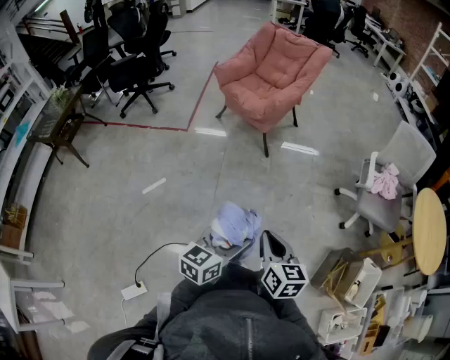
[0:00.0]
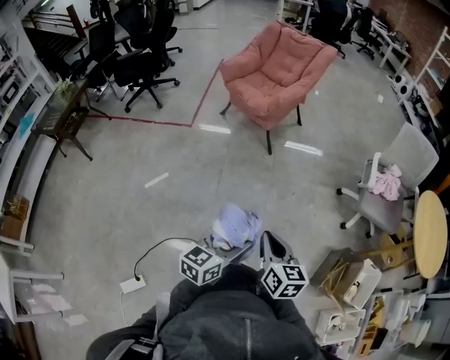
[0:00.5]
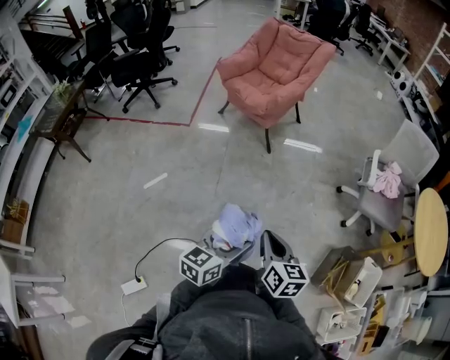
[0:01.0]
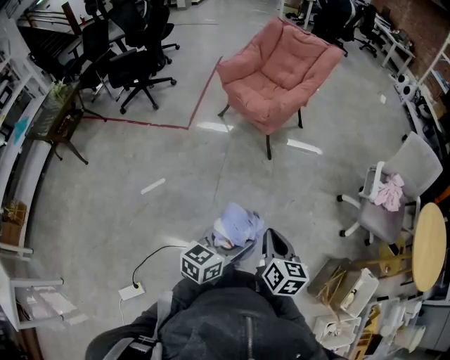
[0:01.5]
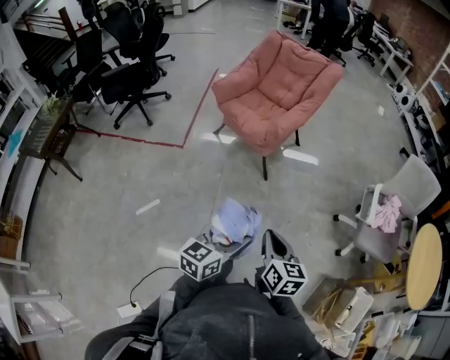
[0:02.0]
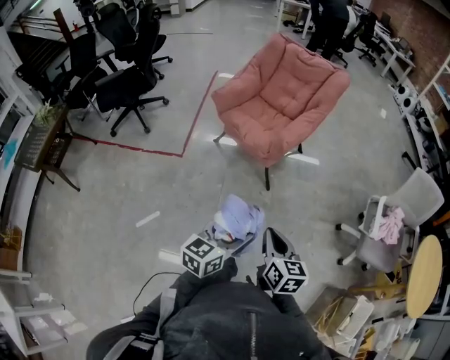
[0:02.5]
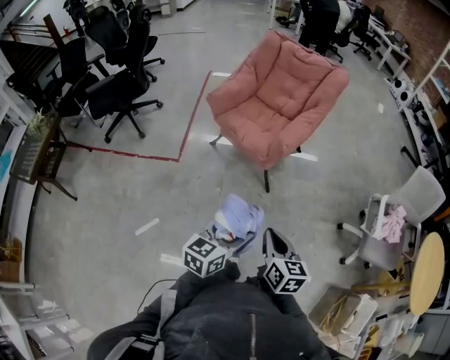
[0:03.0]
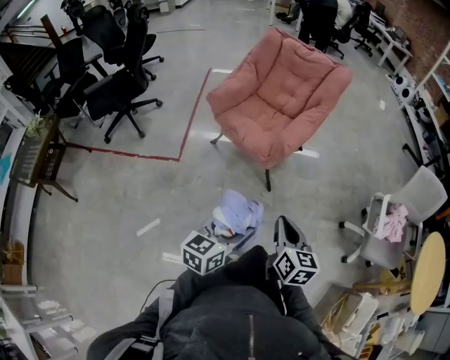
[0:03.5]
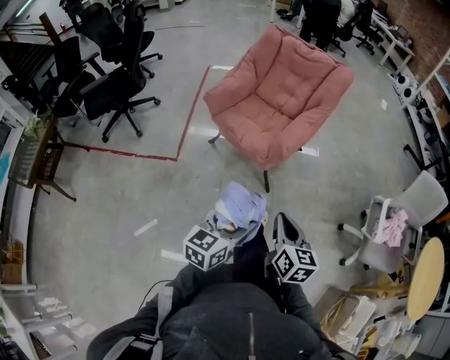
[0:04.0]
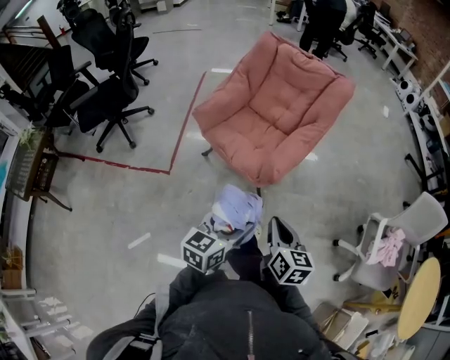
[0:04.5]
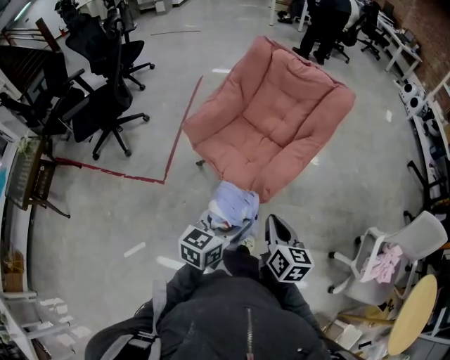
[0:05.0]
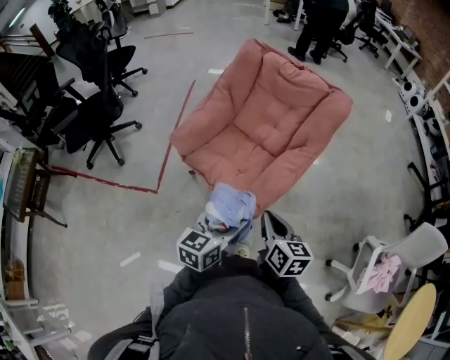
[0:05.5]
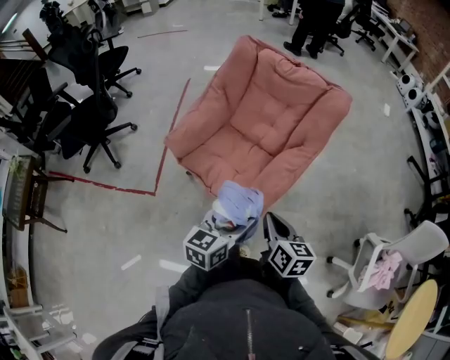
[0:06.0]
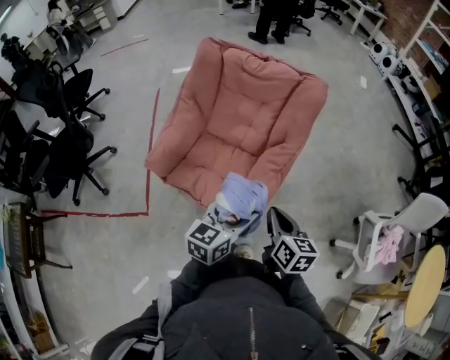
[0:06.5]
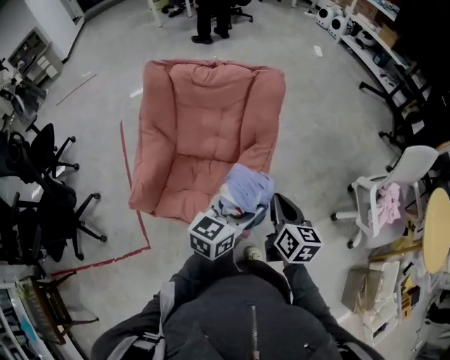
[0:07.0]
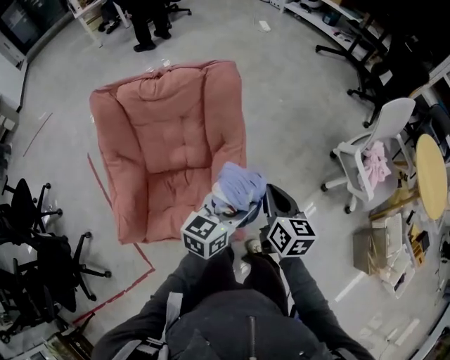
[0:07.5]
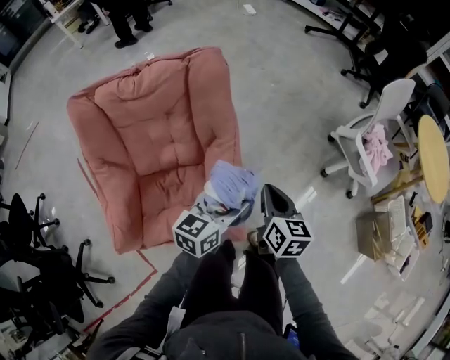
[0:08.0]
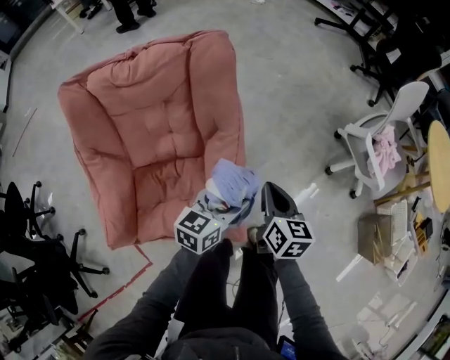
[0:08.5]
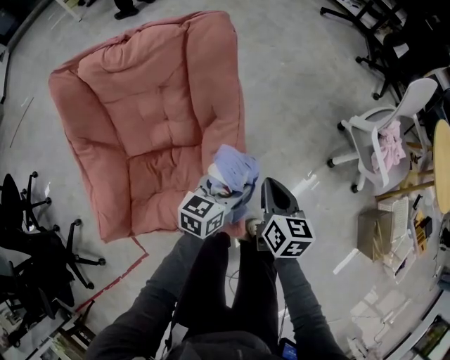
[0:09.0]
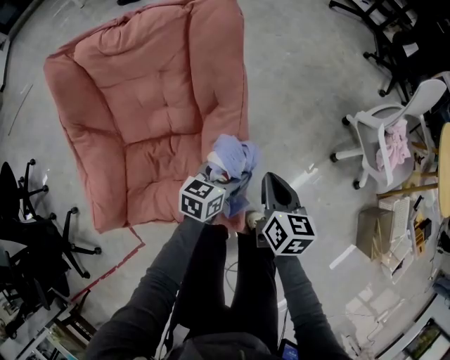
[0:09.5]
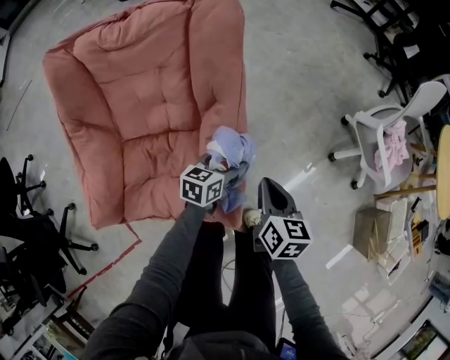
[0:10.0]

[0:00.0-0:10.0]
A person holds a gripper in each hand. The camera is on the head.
0:00.0 to 0:02.0: The two grippers go roughly 20 cm forward.
0:02.0 to 0:04.0: Both grippers move forward, about 25 cm.
0:04.0 to 0:06.0: Both grippers travel together forward, approximately 35 cm.
0:06.0 to 0:08.0: The left gripper moves roughly 20 cm, and swivels about 50 degrees, while the right gripper ends up approximately 20 cm from where it was, and turns by some 50 degrees.
0:08.0 to 0:10.0: The right gripper moves downward, some 10 cm; the left gripper is displaced downward by some 20 cm.

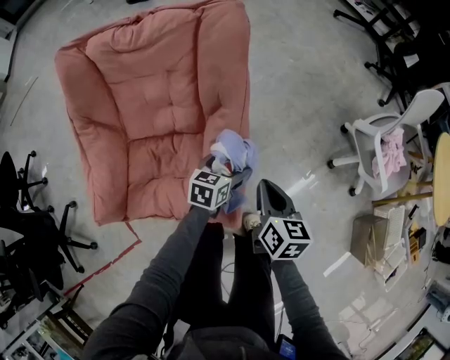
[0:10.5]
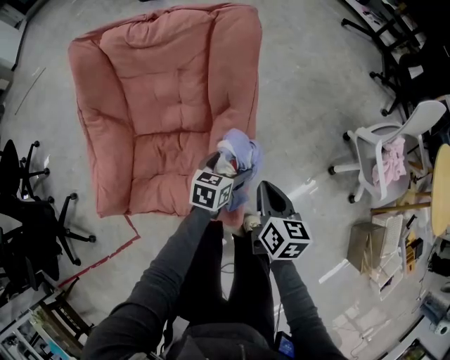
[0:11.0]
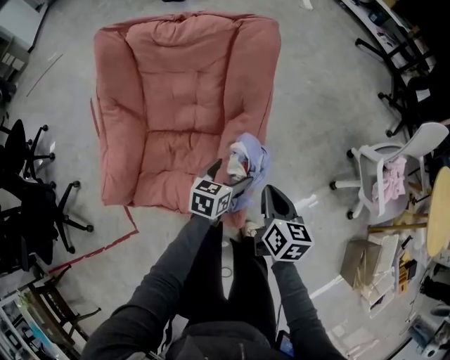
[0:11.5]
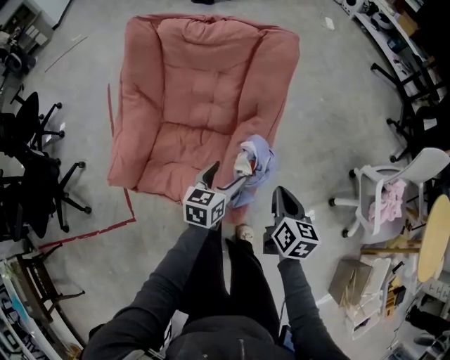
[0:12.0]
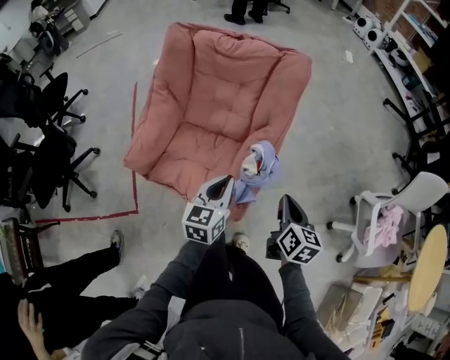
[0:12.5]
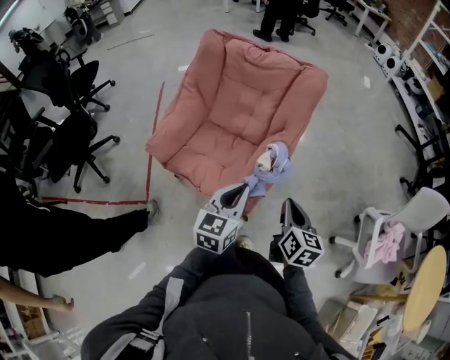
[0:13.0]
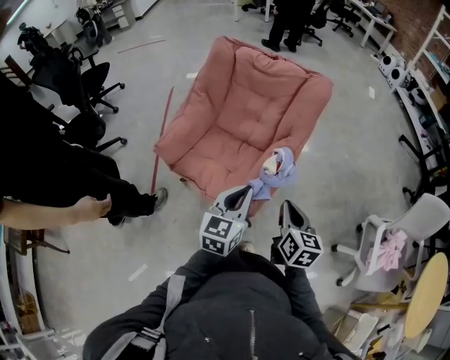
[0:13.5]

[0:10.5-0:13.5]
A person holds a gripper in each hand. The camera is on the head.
0:10.5 to 0:12.0: The left gripper heads upward, to the left and backward, covering about 15 cm, and changes its angle by about 20 degrees.
0:12.0 to 0:13.5: The left gripper is displaced backward and upward by some 20 cm, turns by some 30 degrees, and closes its fingers, while the right gripper travels backward and upward by some 10 cm, and rotates roughly 20 degrees.

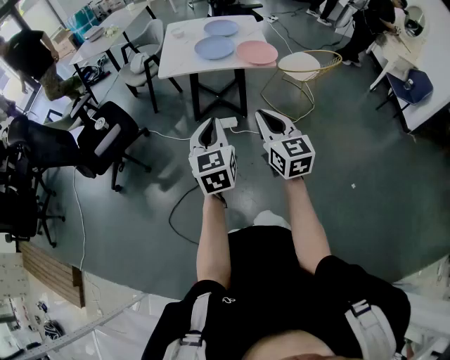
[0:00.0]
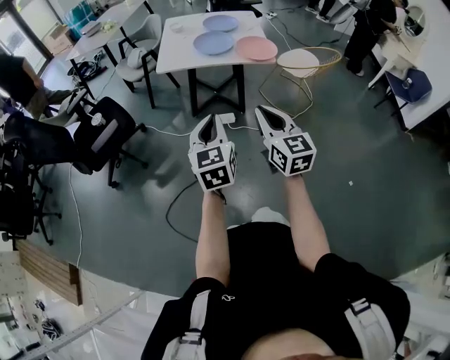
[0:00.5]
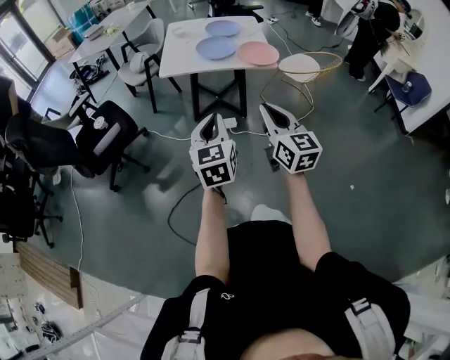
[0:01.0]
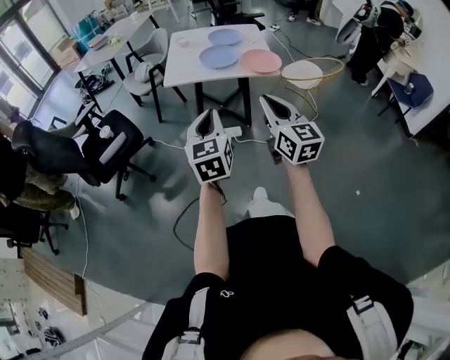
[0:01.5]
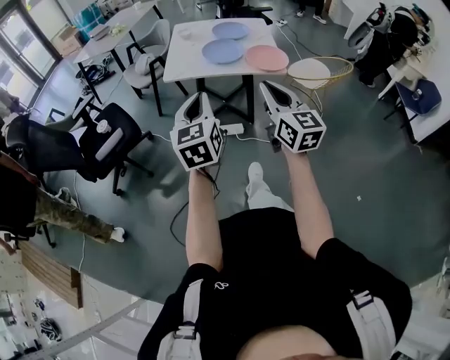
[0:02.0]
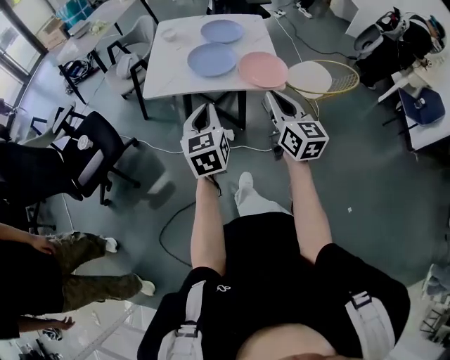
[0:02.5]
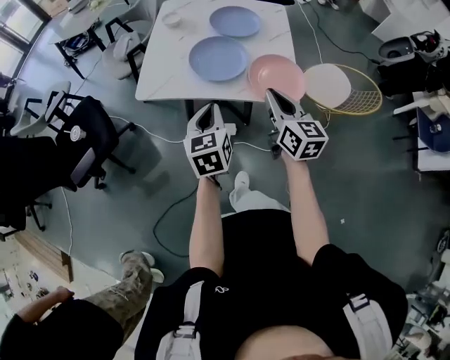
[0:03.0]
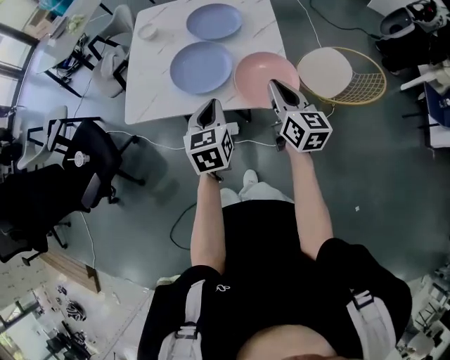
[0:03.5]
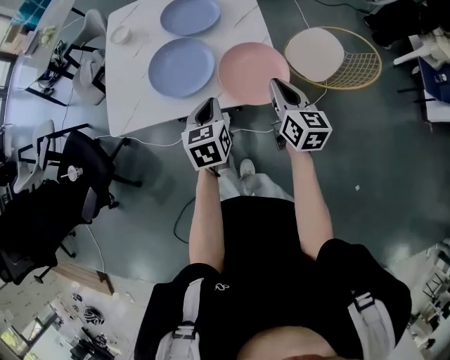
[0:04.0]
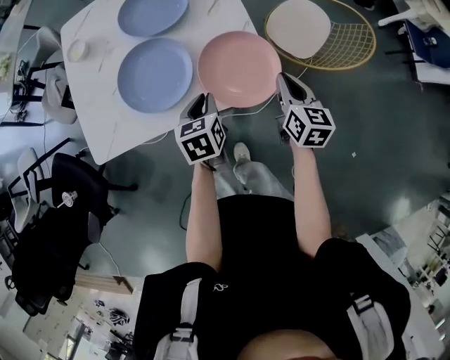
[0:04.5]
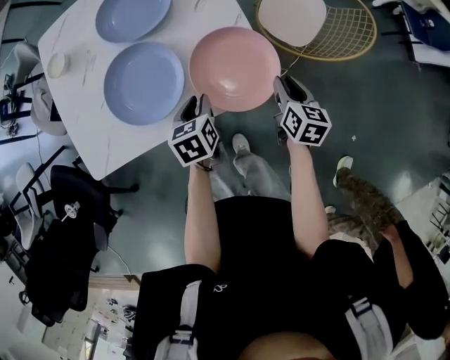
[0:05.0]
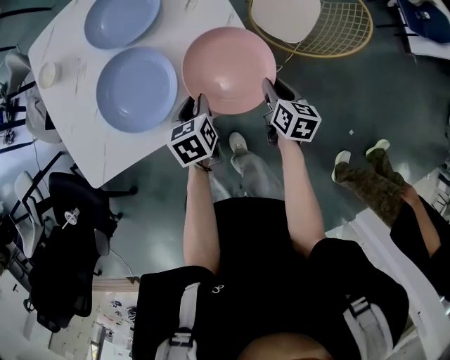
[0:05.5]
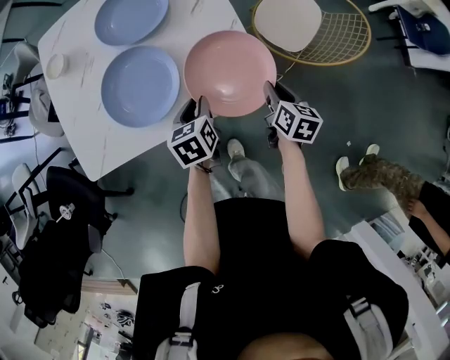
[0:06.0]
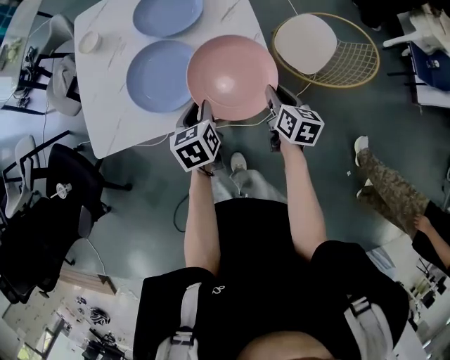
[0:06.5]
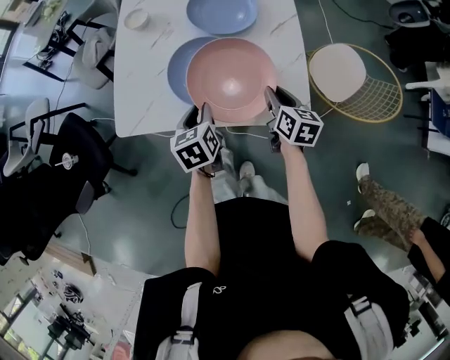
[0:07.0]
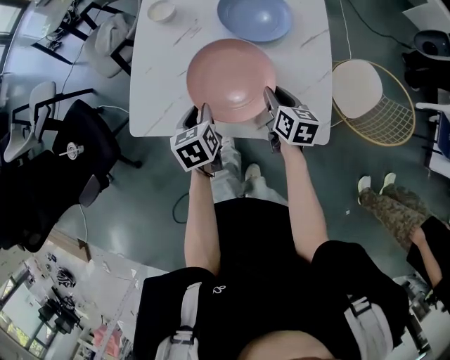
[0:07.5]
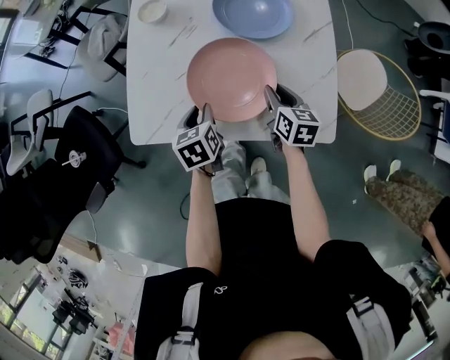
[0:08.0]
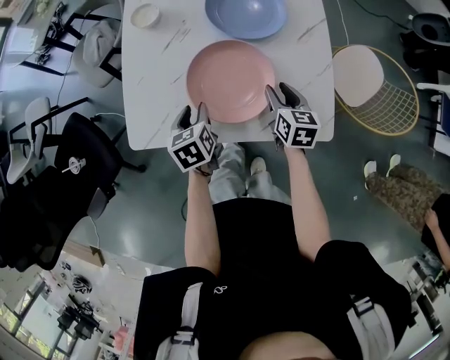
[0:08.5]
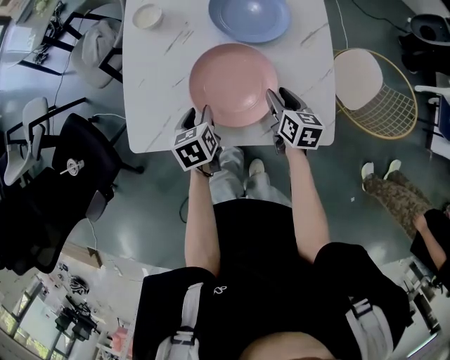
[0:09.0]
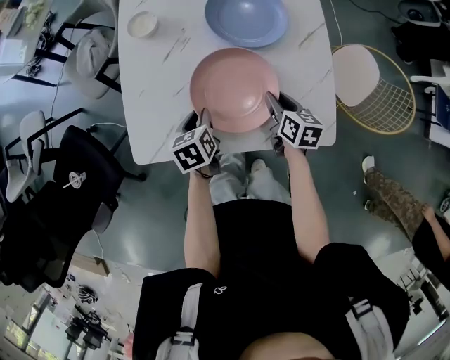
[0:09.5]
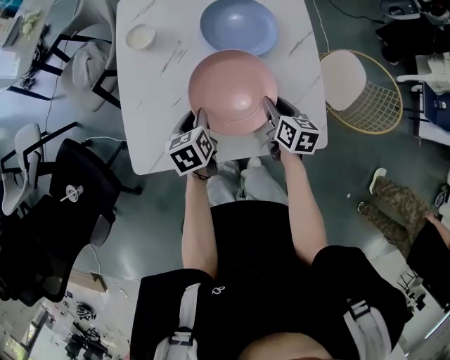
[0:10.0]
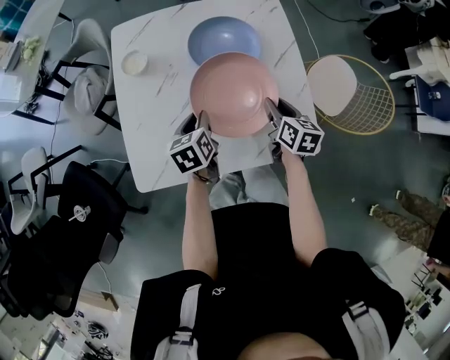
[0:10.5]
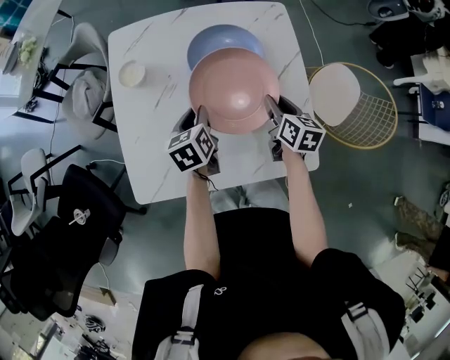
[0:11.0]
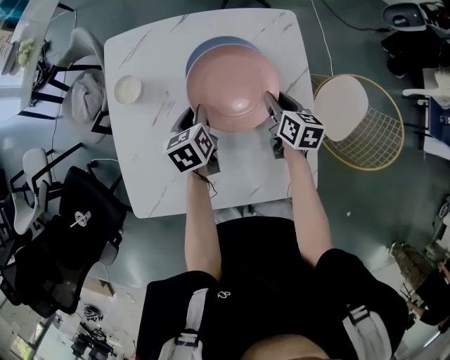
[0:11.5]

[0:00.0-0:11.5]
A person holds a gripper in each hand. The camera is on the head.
0:00.0 to 0:02.0: The grippers both shift forward by roughly 10 cm.
0:02.0 to 0:04.0: The pair of grippers is taken forward and to the right, roughly 50 cm. Both grippers move downward, about 20 cm. The left gripper changes its angle by approximately 30 degrees; the right gripper swivels approximately 30 degrees.
0:04.0 to 0:06.0: The right gripper travels downward and to the right by about 20 cm, and swivels approximately 30 degrees. The left gripper shifts roughly 15 cm downward and forward, and opens up.
0:06.0 to 0:07.5: The left gripper changes place by about 25 cm, and changes its angle by some 20 degrees. The right gripper moves some 25 cm, and rotates about 30 degrees.
0:07.5 to 0:09.5: The left gripper moves some 5 cm.
0:09.5 to 0:11.5: Both grippers move forward, some 20 cm.

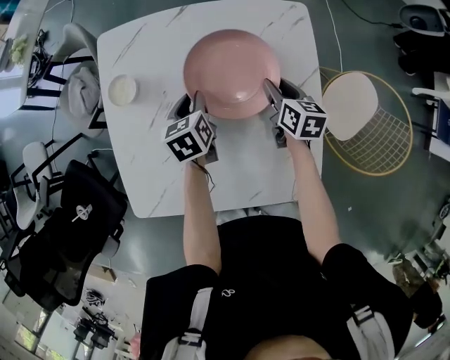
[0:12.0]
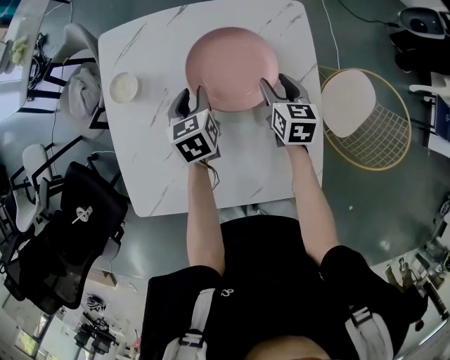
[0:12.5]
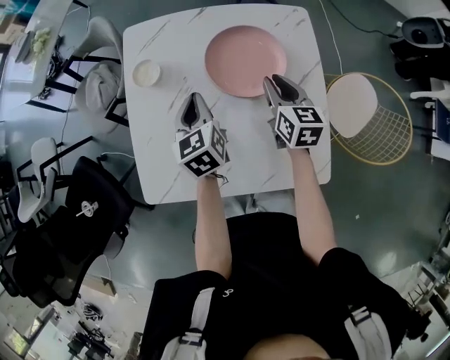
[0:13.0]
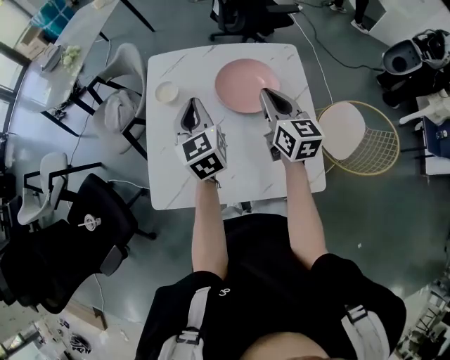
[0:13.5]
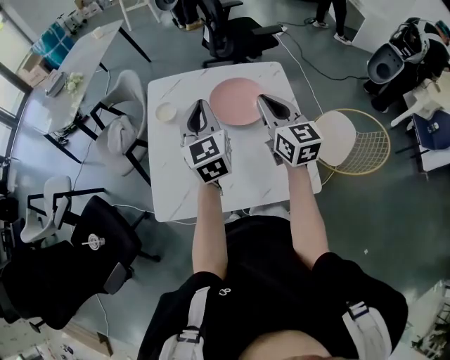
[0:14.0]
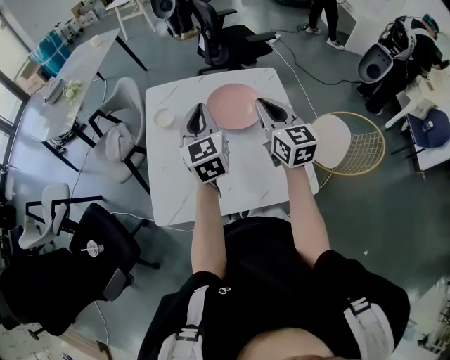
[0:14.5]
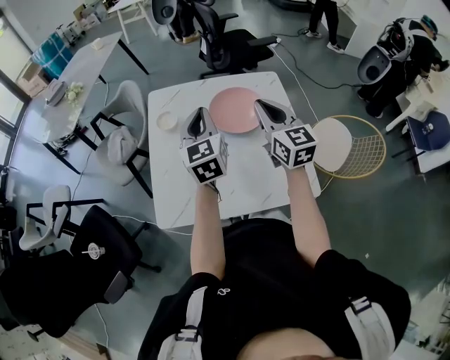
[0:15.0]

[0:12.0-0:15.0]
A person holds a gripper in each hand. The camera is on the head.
0:12.0 to 0:13.5: The right gripper heads upward, to the left and backward, covering some 25 cm, rotates some 30 degrees, and closes up. The left gripper is displaced upward and backward by some 25 cm, points its fingers roughly 30 degrees further upward, and closes up.
0:13.5 to 0:15.0: Both grippers move upward, approximately 5 cm.
